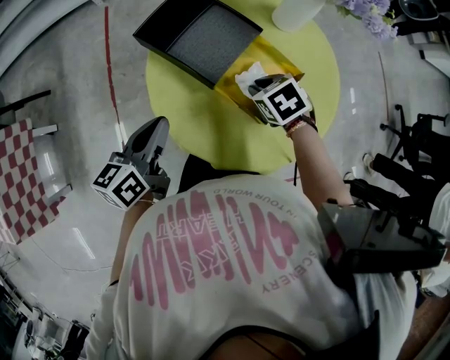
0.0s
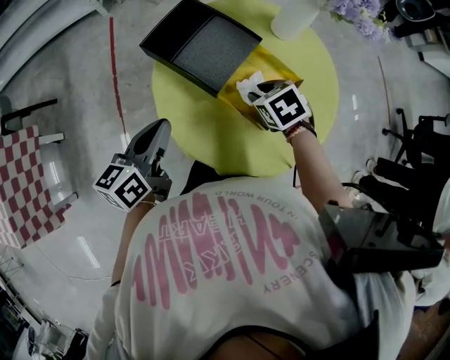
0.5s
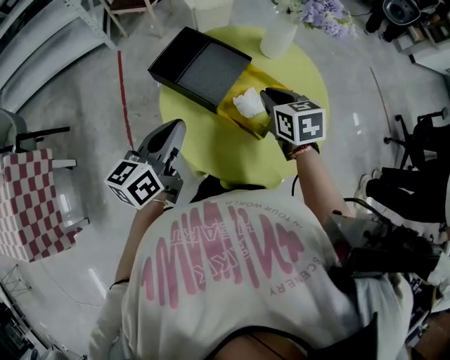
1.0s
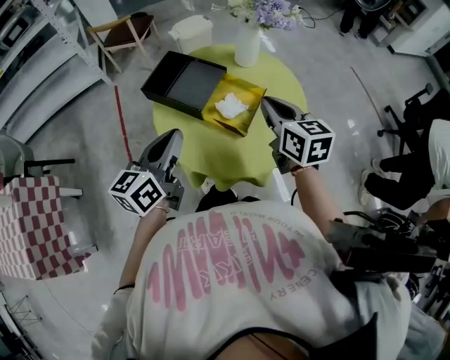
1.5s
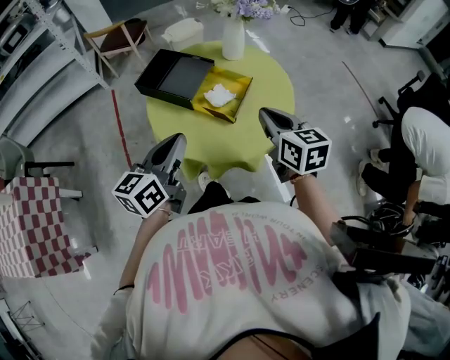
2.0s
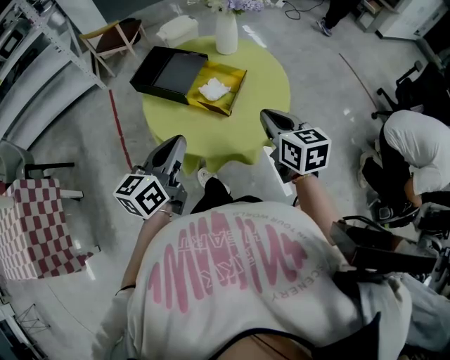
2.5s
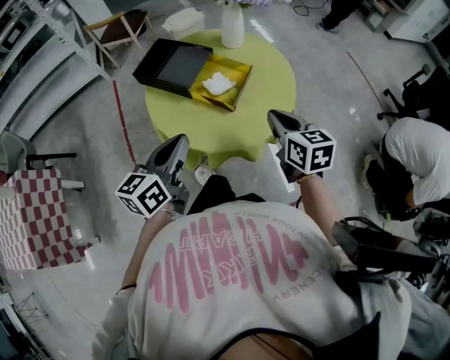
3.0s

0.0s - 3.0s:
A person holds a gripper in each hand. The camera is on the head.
0.0s - 1.5s: The left gripper moves upward, to the right and backward, approximately 15 cm, and turns by some 20 degrees. Meanwhile the right gripper moves upward and backward, some 25 cm, and angles its fingers upward, by some 50 degrees.
1.5s - 3.0s: Both grippers travel together backward and to the right, about 10 cm.

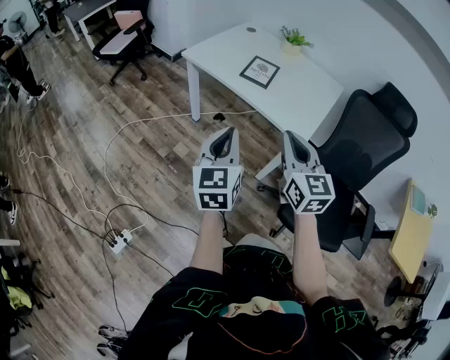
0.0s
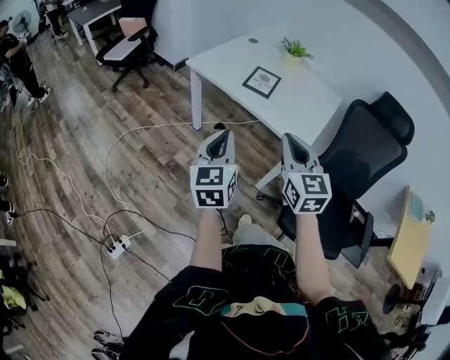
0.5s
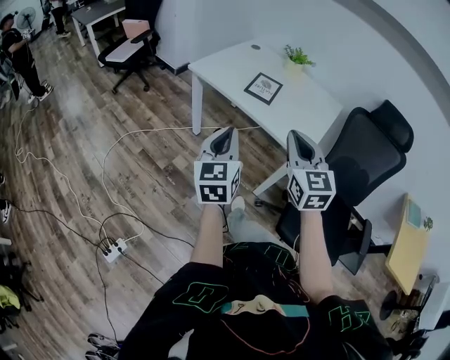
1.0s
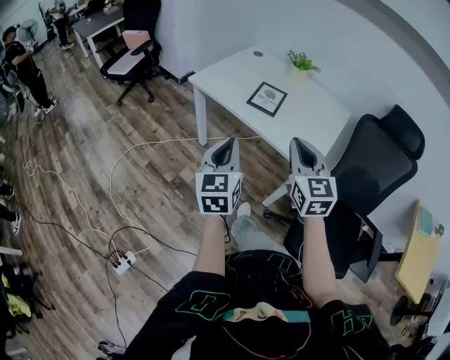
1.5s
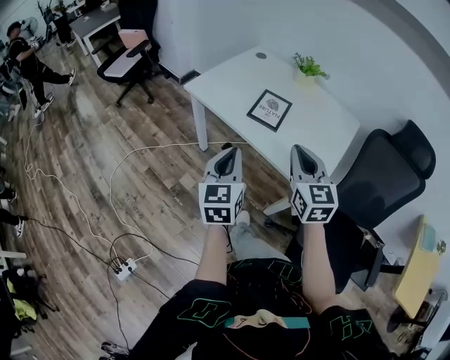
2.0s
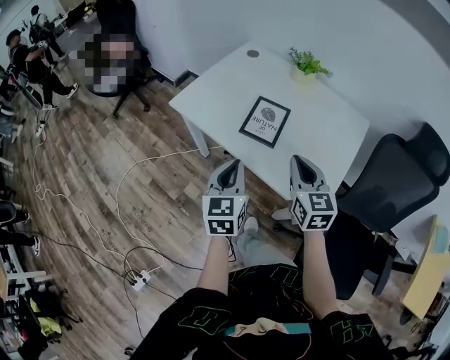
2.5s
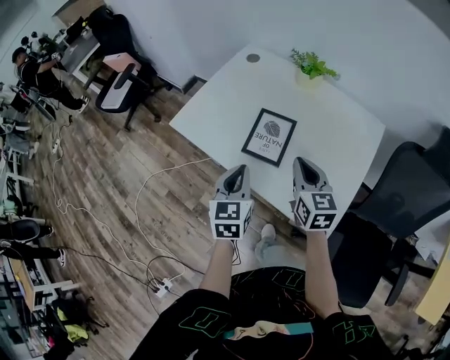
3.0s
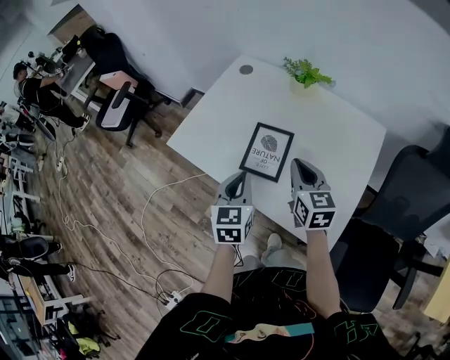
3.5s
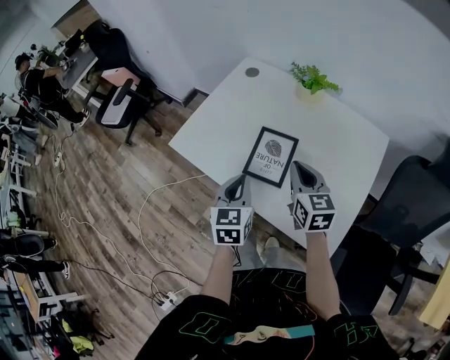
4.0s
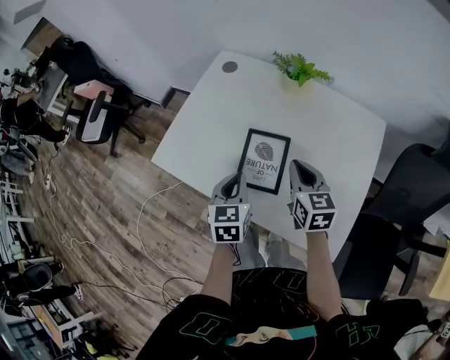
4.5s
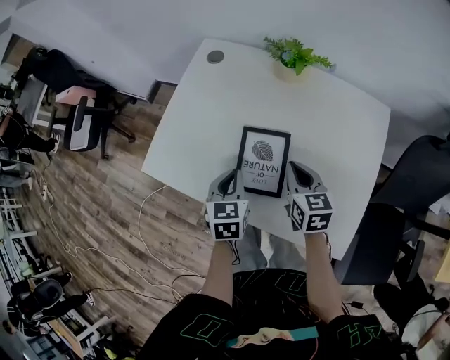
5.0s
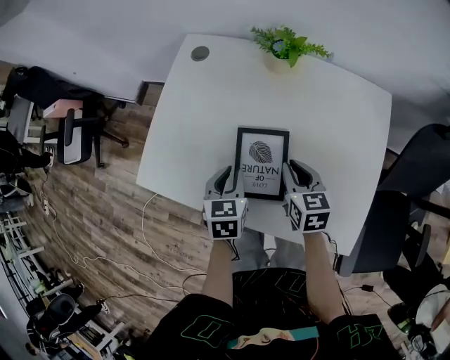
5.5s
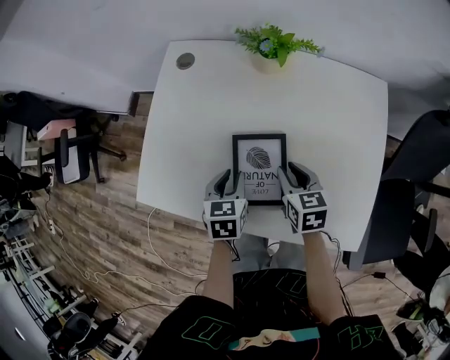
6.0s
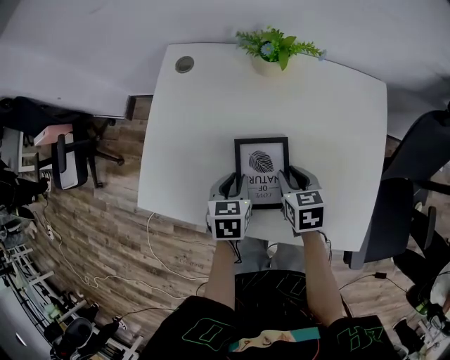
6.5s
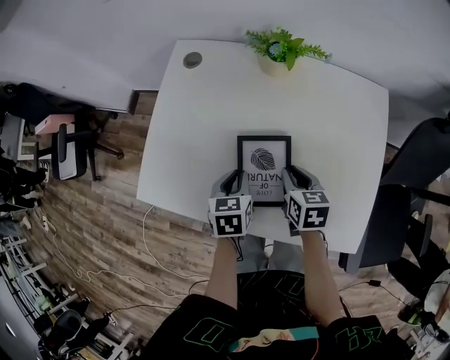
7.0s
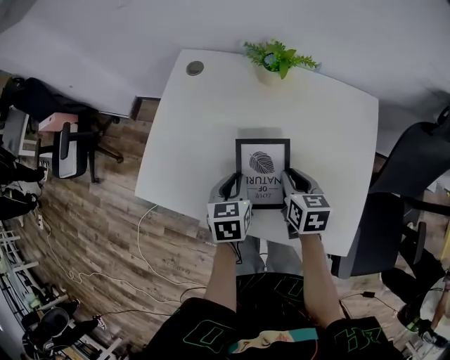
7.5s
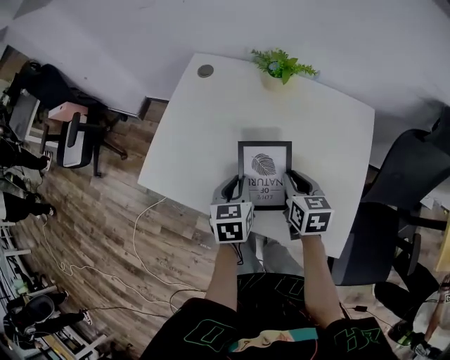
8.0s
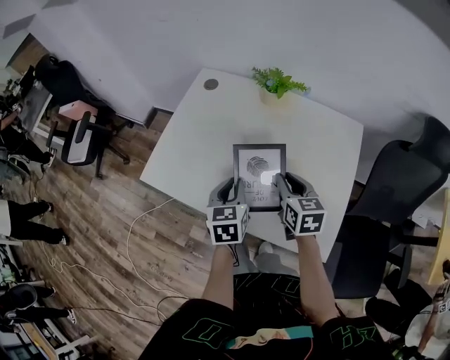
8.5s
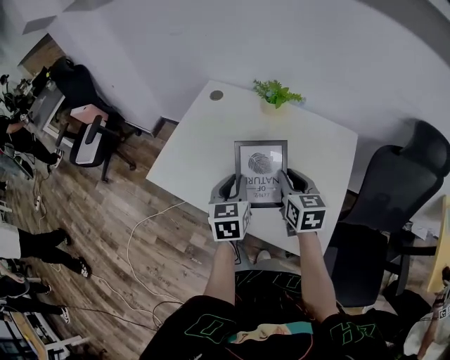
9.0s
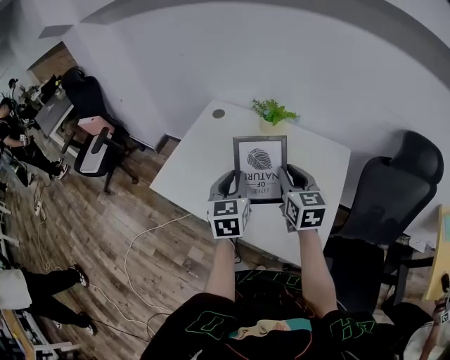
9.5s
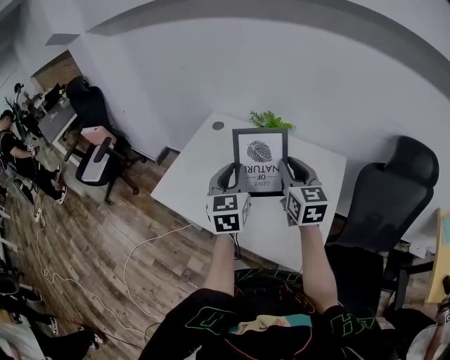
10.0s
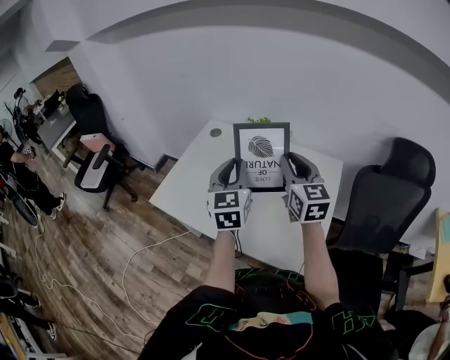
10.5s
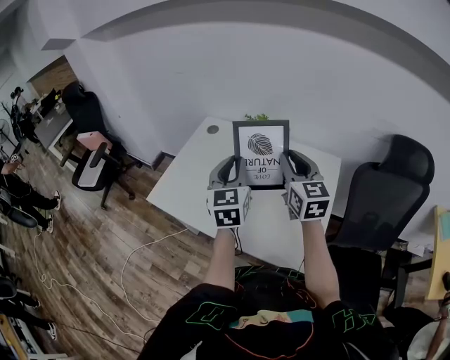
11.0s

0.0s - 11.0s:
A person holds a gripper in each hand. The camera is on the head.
0.0s - 2.0s: The grippers both shift forward by approximately 15 cm.
2.0s - 3.5s: Both grippers travel together forward, some 25 cm. The right gripper turns by some 20 degrees.
3.5s - 5.5s: The left gripper is displaced forward and downward by about 20 cm, and swivels about 20 degrees. The right gripper shifts about 15 cm downward and forward, and rotates approximately 20 degrees.
5.5s - 7.5s: There are only small adjustments of the grippers.
7.5s - 9.0s: The right gripper heads upward, covering roughly 15 cm, and rotates about 20 degrees. Meanwhile the left gripper moves upward and backward, approximately 15 cm, and turns by some 20 degrees.
9.0s - 11.0s: The two grippers go some 15 cm upward. The right gripper changes its angle by about 20 degrees; the left gripper changes its angle by some 20 degrees.

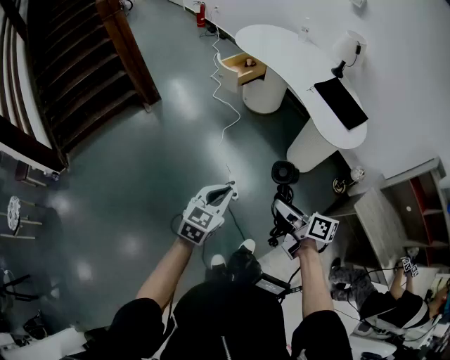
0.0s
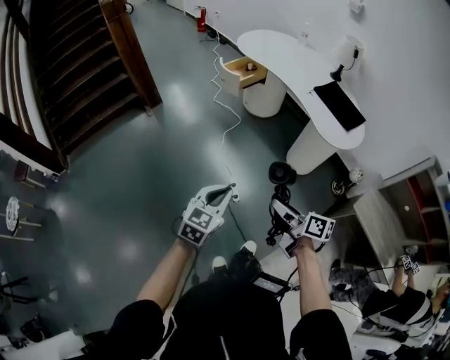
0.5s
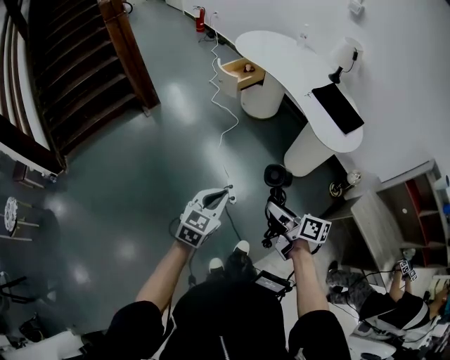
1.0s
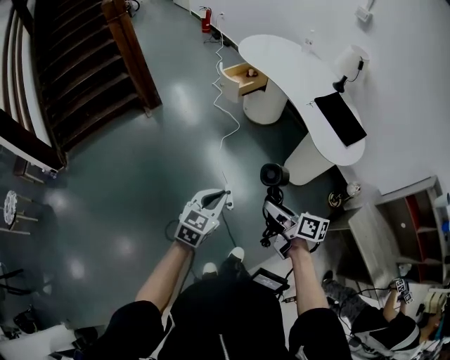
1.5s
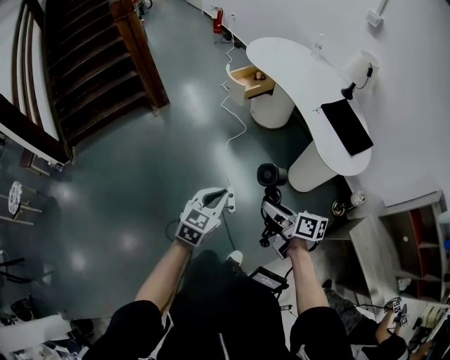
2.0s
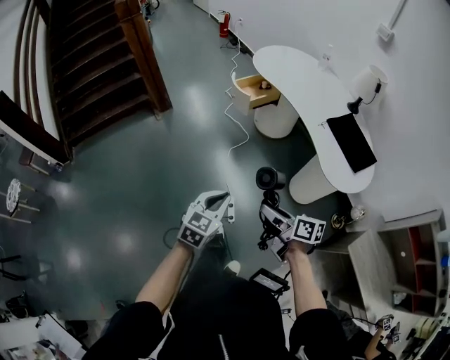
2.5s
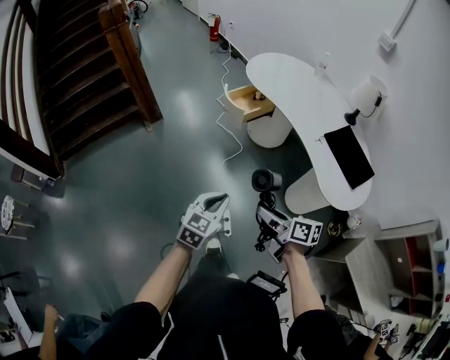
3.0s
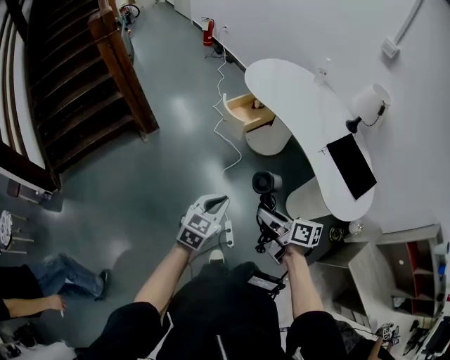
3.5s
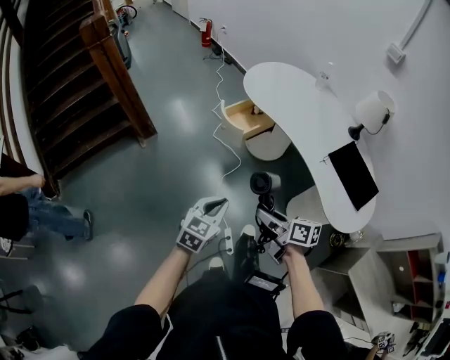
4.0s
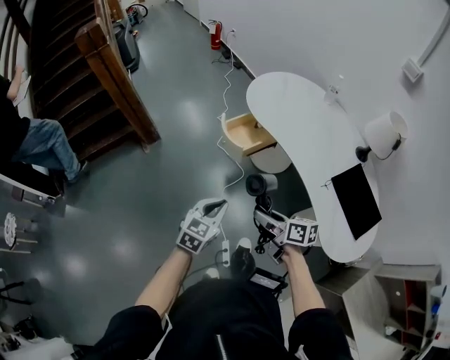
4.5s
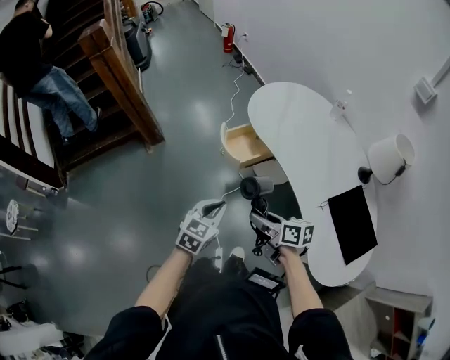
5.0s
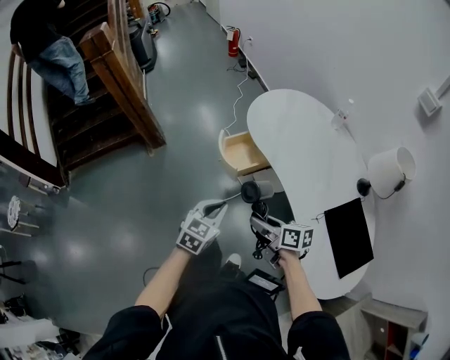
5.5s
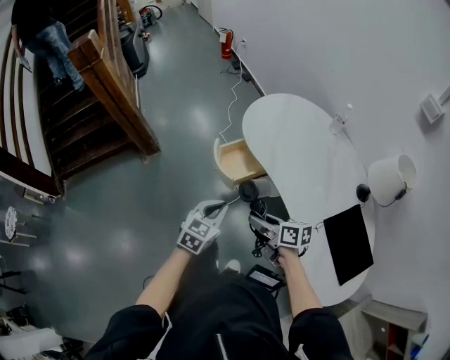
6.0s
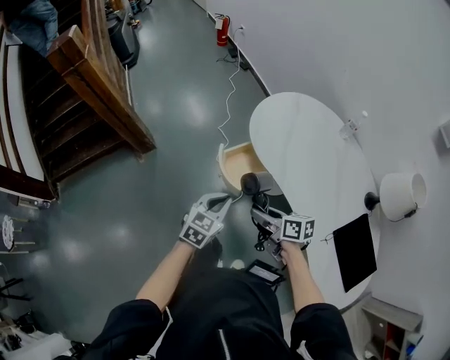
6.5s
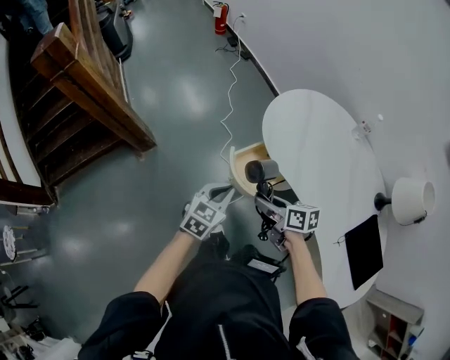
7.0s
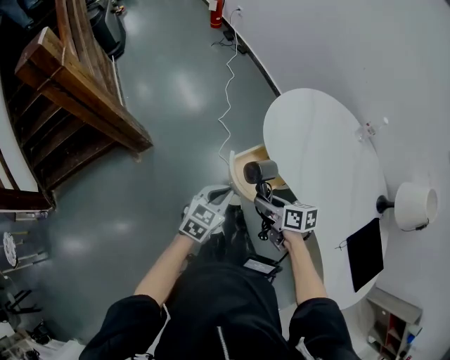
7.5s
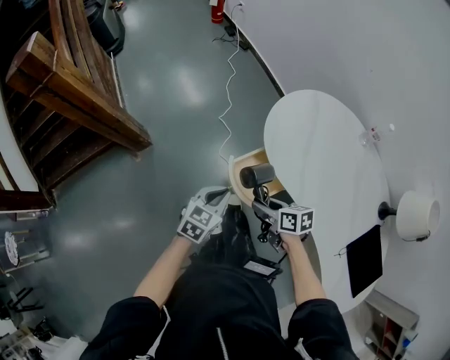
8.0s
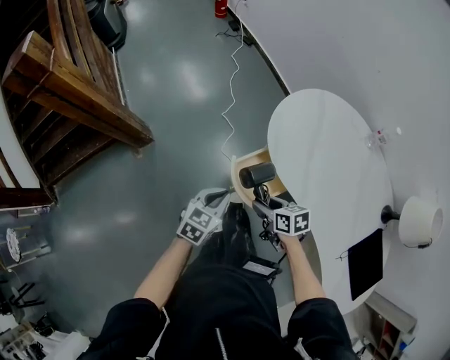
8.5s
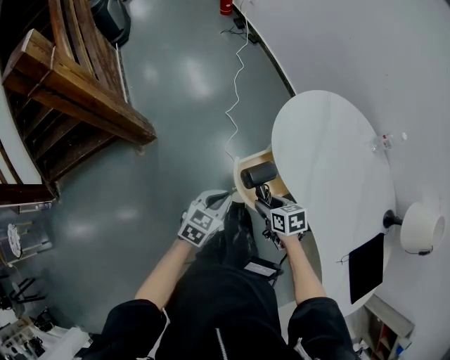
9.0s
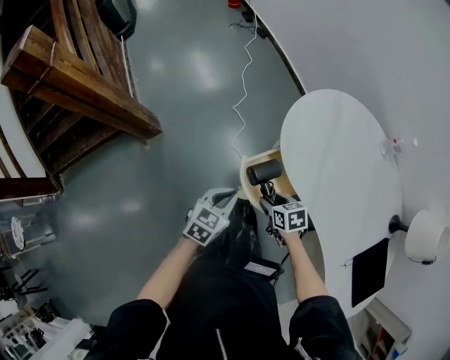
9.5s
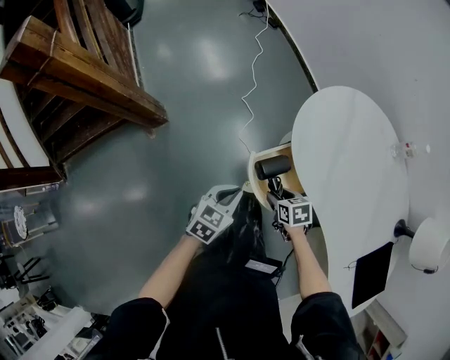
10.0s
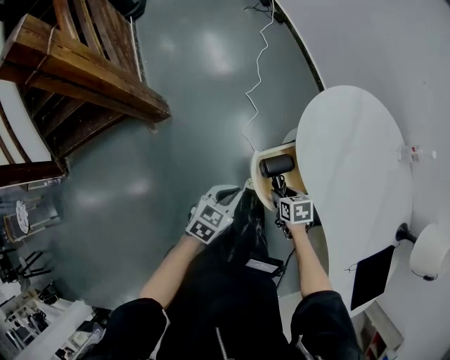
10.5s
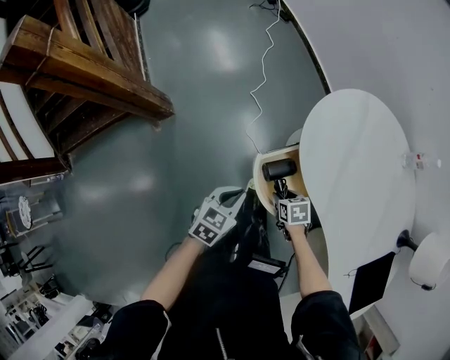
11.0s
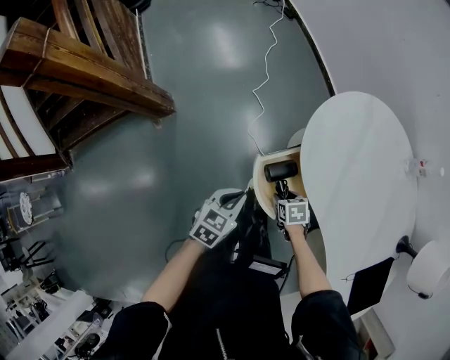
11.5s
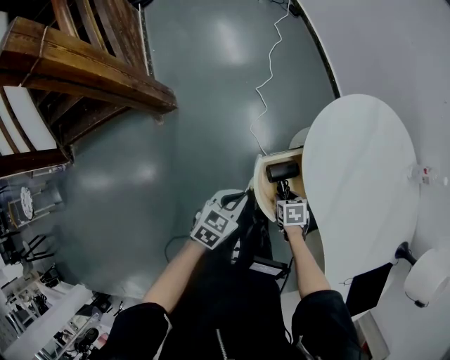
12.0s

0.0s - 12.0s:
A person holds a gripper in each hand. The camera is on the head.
0.0s - 2.0s: Both grippers travel together forward, approximately 5 cm.
2.0s - 4.0s: The two grippers go about 30 cm forward.
4.0s - 6.0s: The grippers both shift forward and to the right by roughly 30 cm.
6.0s - 8.0s: Both grippers move forward, roughly 25 cm.
8.0s - 10.0s: The right gripper moves downward, roughly 10 cm, and rotates roughly 30 degrees, while the left gripper ends up approximately 5 cm from where it was.
10.0s - 12.0s: The right gripper moves downward, approximately 10 cm.

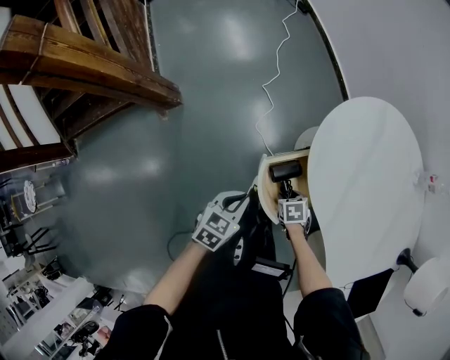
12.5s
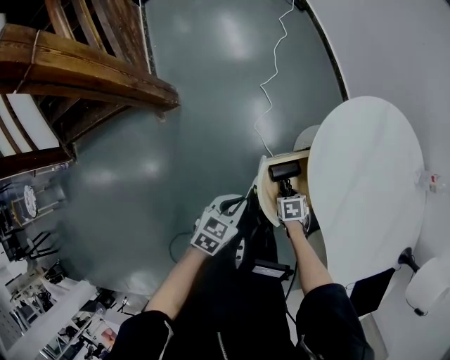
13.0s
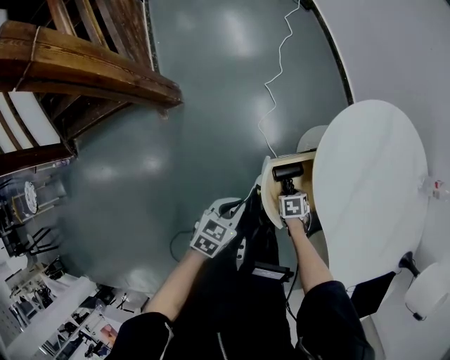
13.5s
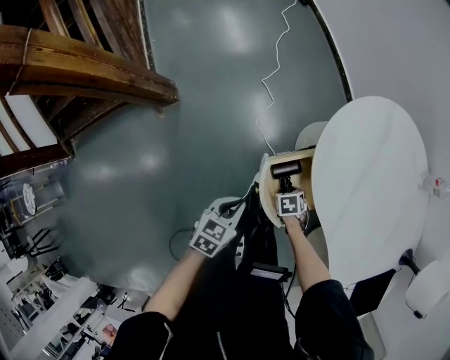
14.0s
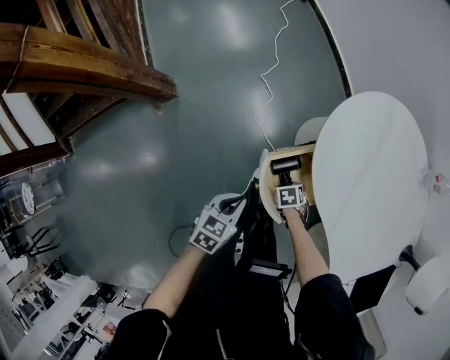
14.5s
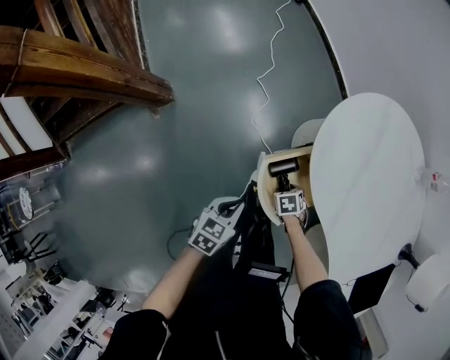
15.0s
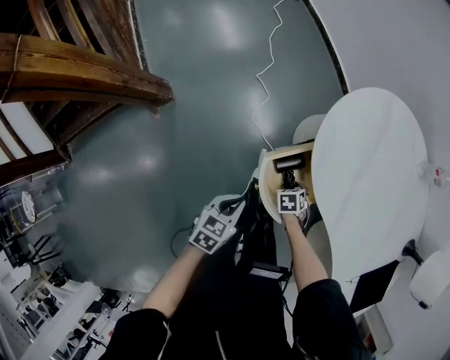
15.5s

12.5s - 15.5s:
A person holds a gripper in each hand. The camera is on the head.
12.5s - 15.5s: The grippers move only a little.
